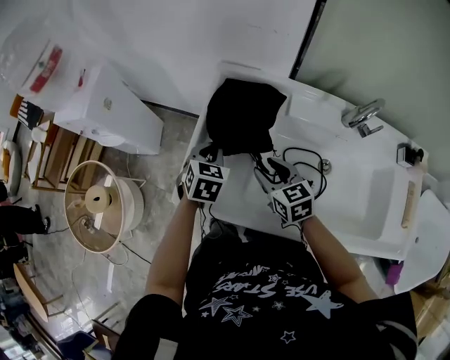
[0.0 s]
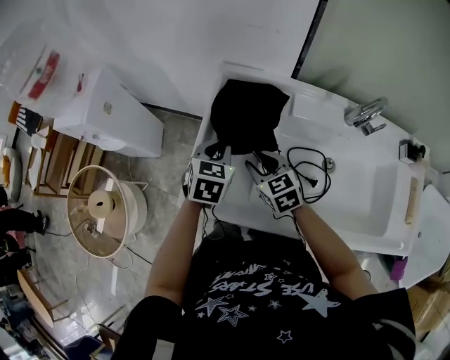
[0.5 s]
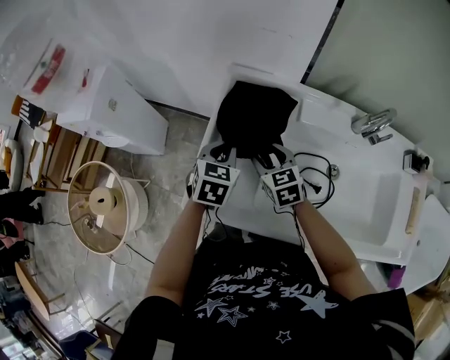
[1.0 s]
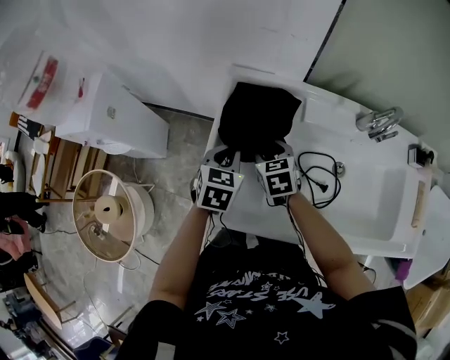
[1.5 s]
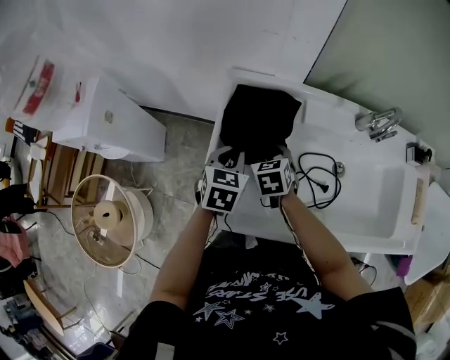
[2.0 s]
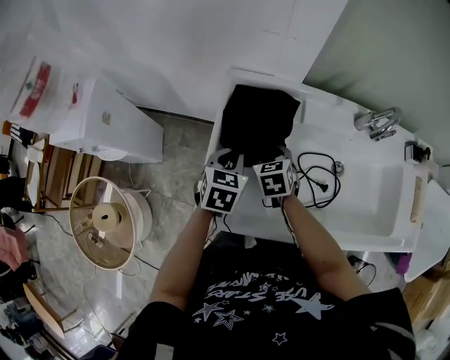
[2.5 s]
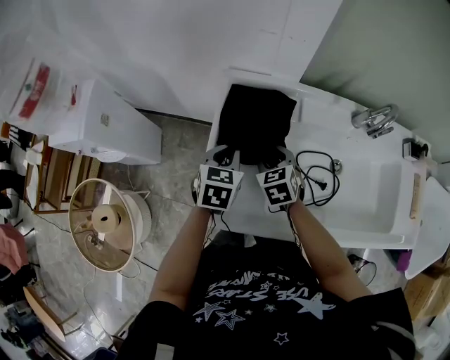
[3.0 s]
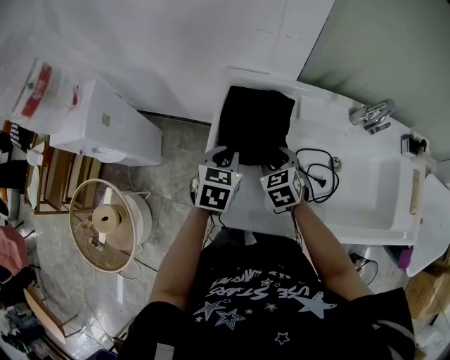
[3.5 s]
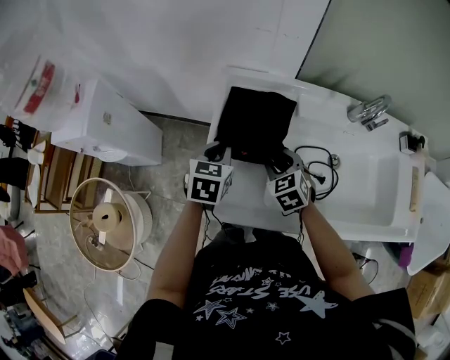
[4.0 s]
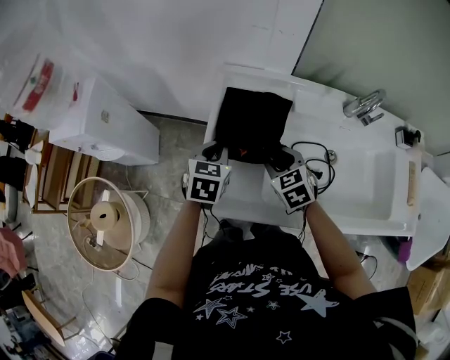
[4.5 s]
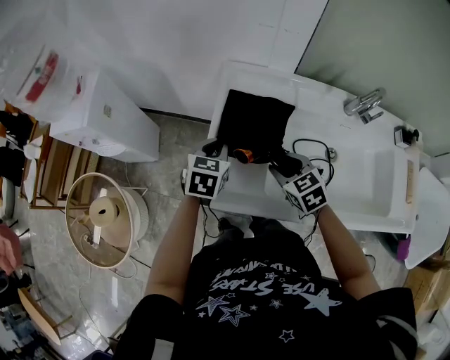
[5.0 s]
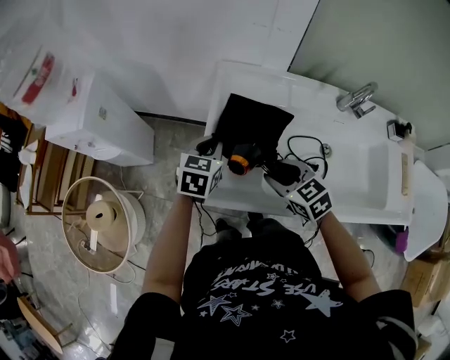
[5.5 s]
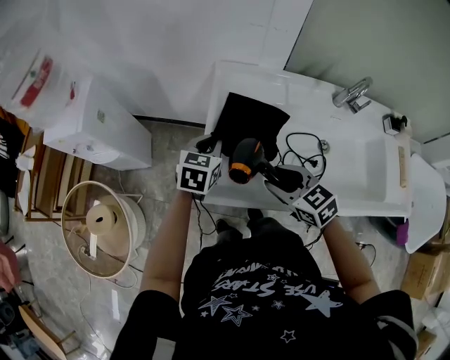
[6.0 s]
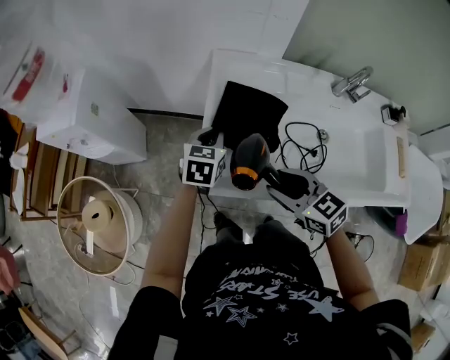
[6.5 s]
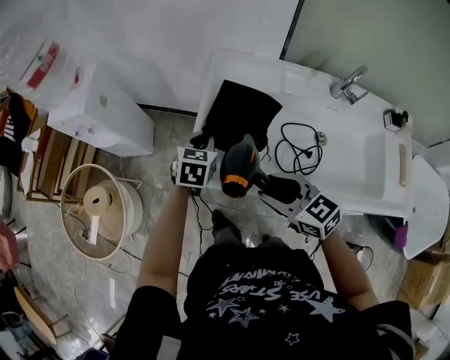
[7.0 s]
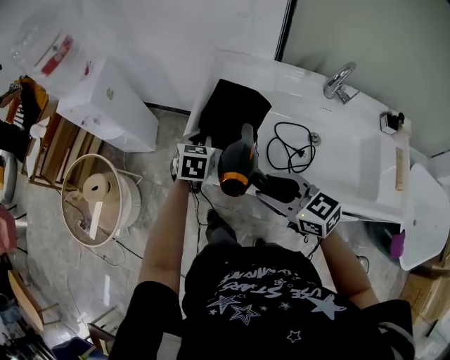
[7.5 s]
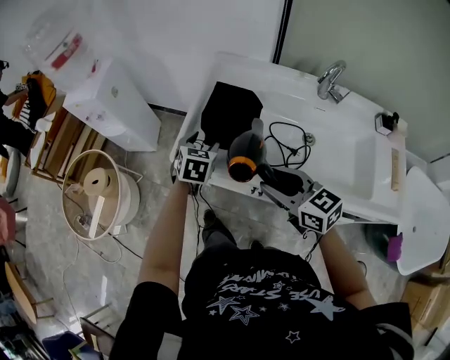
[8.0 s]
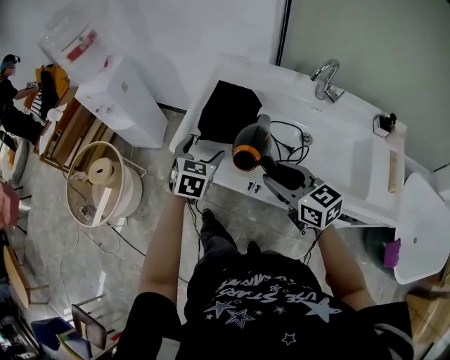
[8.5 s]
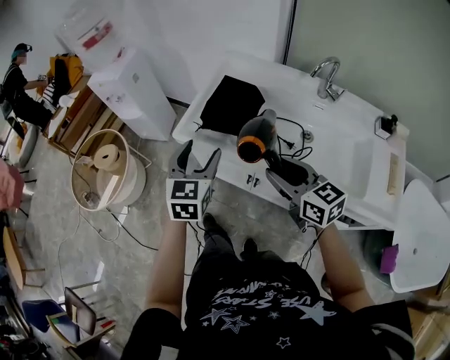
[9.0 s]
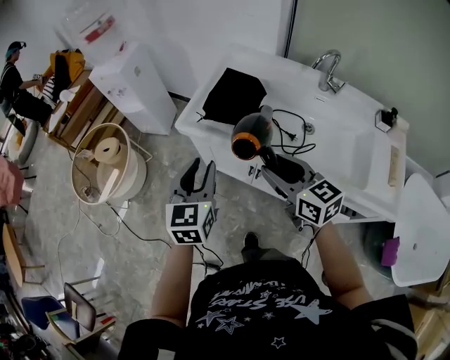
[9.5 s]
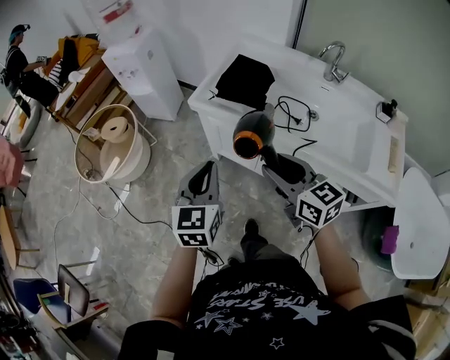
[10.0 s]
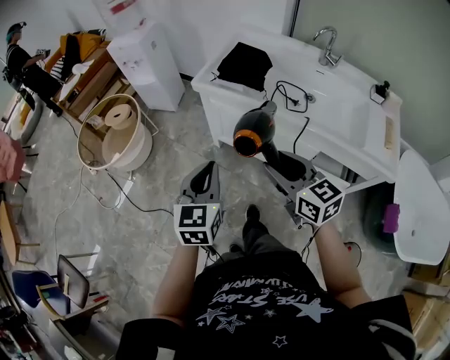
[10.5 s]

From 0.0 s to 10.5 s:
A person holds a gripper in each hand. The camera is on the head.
From 0.0 s to 2.0 s: The right gripper goes approximately 10 cm forward, and swivels about 30 degrees.
From 2.0 s to 4.0 s: The right gripper is displaced backward by approximately 5 cm.
From 4.0 s to 6.5 s: The right gripper heads backward and upward, covering about 20 cm, and turns by about 30 degrees.
From 6.5 s to 8.5 s: The right gripper heads backward and to the right, covering approximately 15 cm; the left gripper heads backward, covering roughly 20 cm, and opens.
From 8.5 s to 10.5 s: The left gripper is displaced backward by roughly 35 cm, changes its angle by some 30 degrees, and closes. Meanwhile the right gripper is displaced backward by about 25 cm.

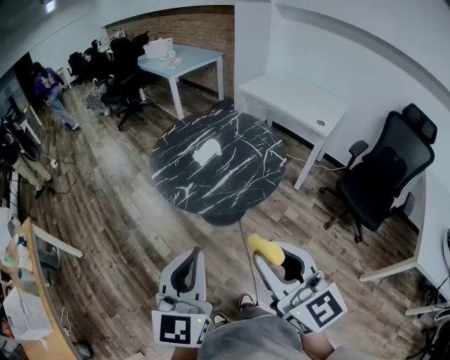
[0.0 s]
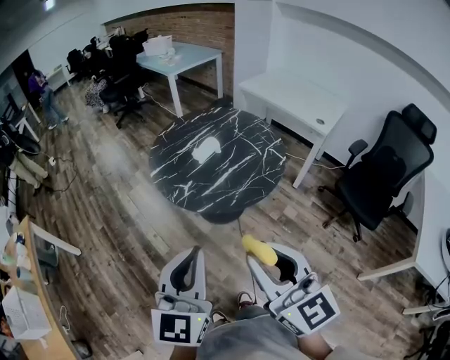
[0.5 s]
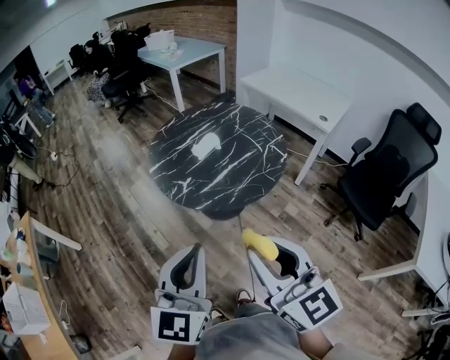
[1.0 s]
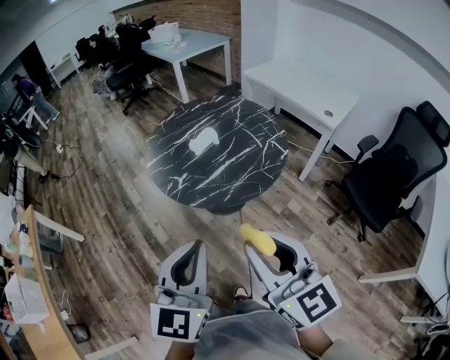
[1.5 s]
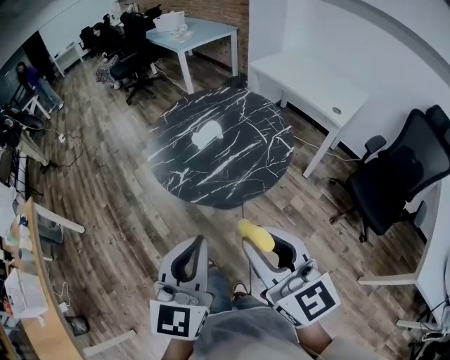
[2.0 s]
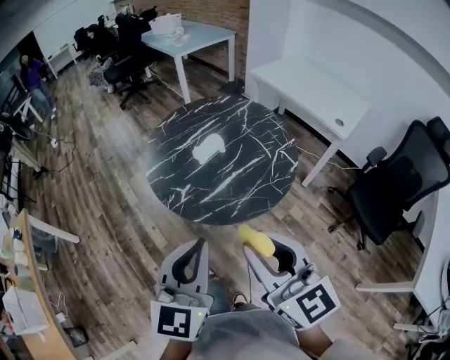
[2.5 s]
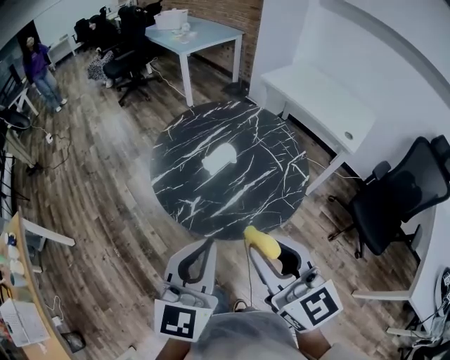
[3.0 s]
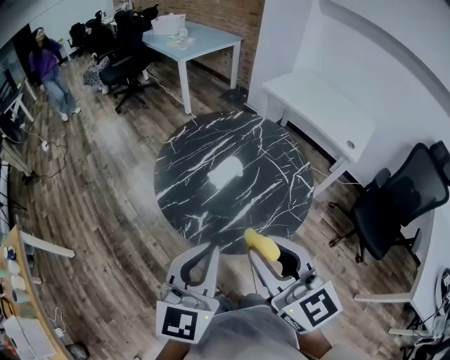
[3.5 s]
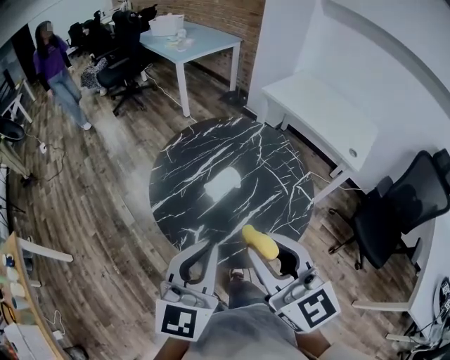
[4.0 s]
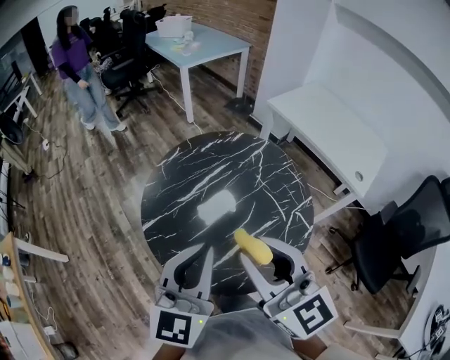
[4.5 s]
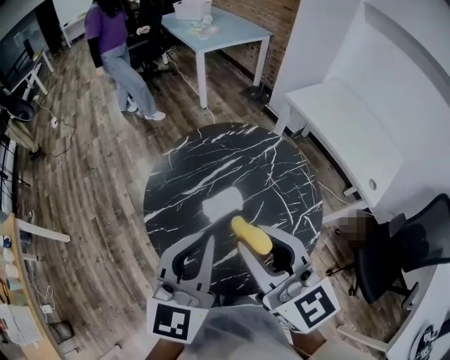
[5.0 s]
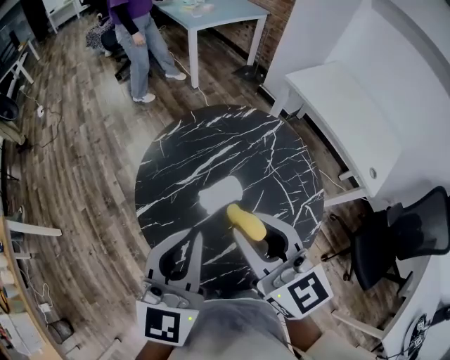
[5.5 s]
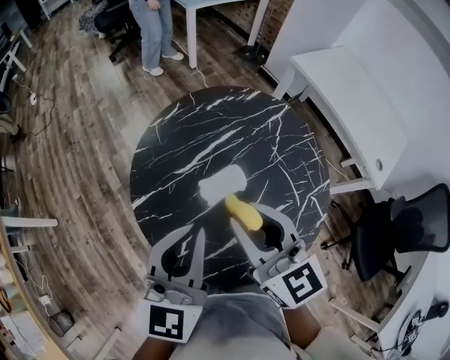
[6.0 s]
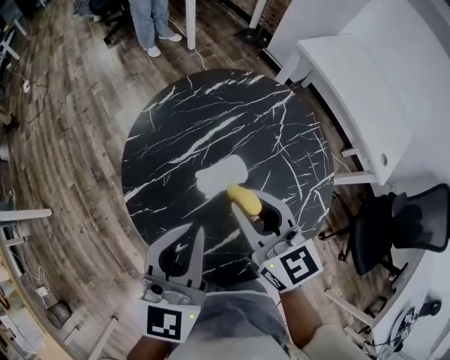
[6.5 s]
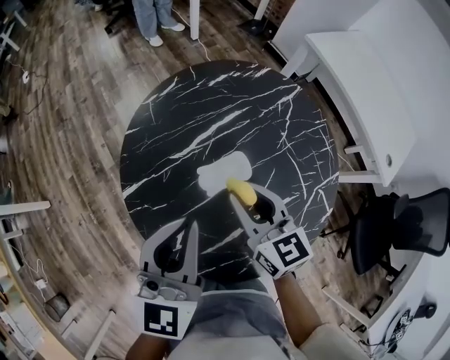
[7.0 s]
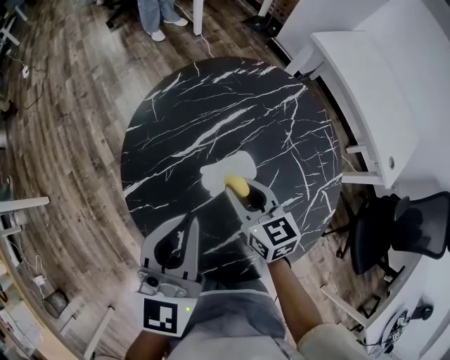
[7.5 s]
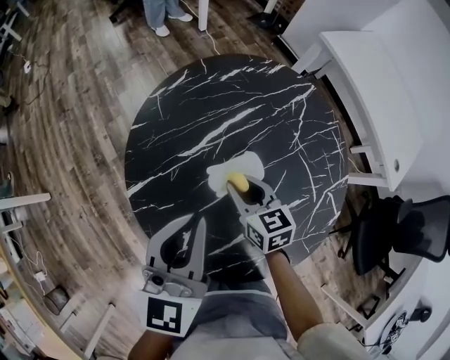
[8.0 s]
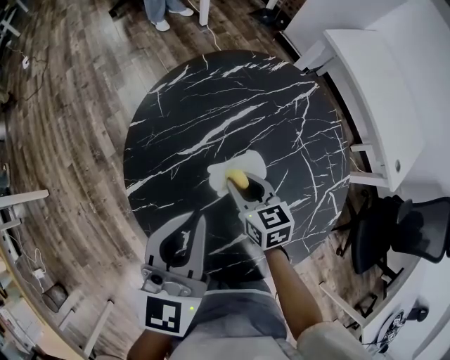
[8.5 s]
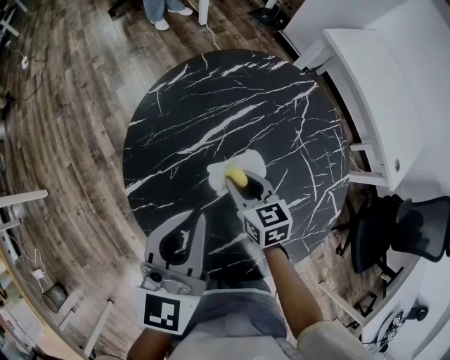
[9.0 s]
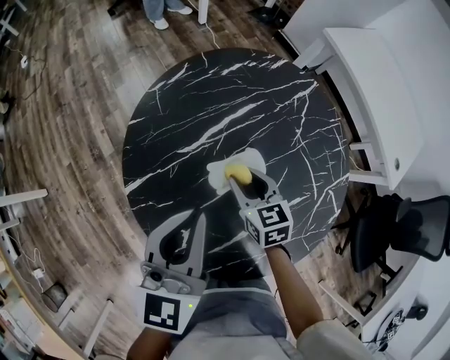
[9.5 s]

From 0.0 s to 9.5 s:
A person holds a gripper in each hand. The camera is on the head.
From 0.0 s to 2.0 s: The left gripper is displaced to the right by roughly 10 cm. Meanwhile the right gripper moves forward, approximately 5 cm.
From 2.0 s to 4.0 s: The grippers both shift forward by roughly 25 cm.
From 4.0 s to 5.5 s: The two grippers go roughly 20 cm forward.
From 5.5 s to 7.5 s: The left gripper heads downward and forward, covering approximately 10 cm. Meanwhile the right gripper travels downward by some 25 cm, and swivels roughly 20 degrees.
From 7.5 s to 9.5 s: The right gripper moves downward, approximately 5 cm.

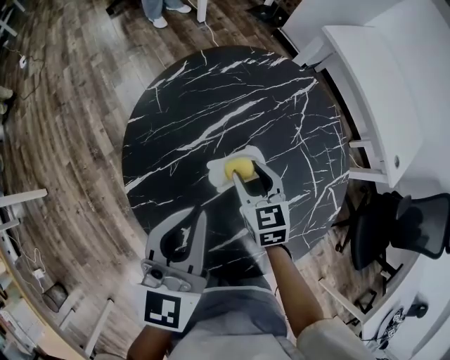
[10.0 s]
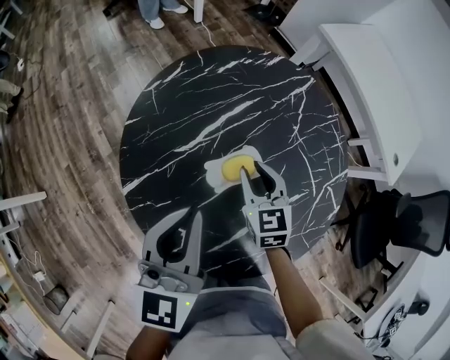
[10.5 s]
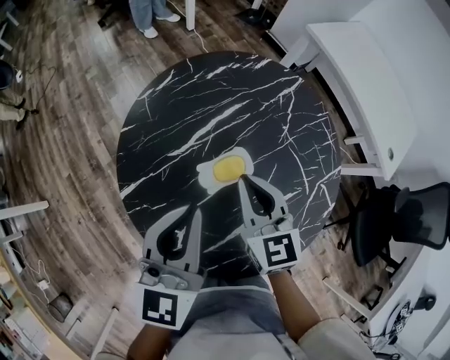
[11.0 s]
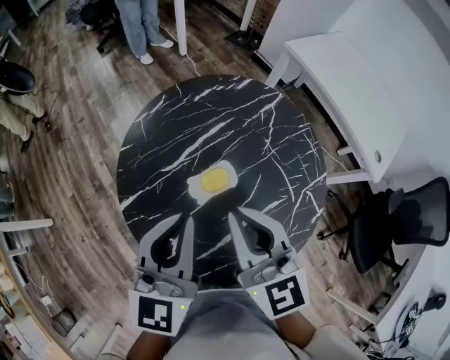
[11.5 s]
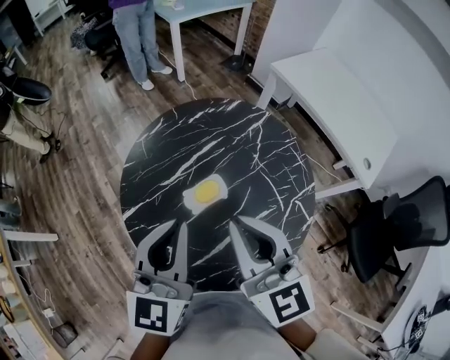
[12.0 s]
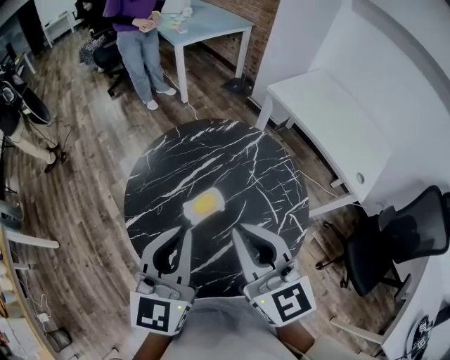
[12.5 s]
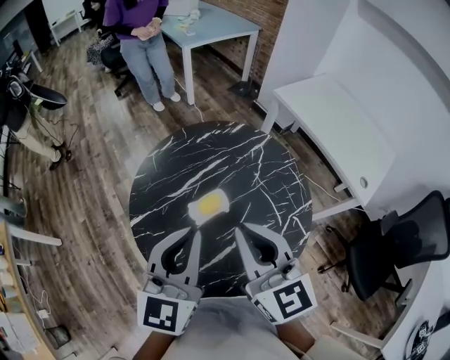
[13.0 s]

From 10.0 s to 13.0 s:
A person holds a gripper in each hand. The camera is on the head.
From 10.0 s to 11.5 s: The left gripper shifts roughly 5 cm upward; the right gripper moves upward, some 25 cm, changes its angle by about 30 degrees, and closes up.
From 11.5 s to 13.0 s: The two grippers go about 10 cm upward and backward.

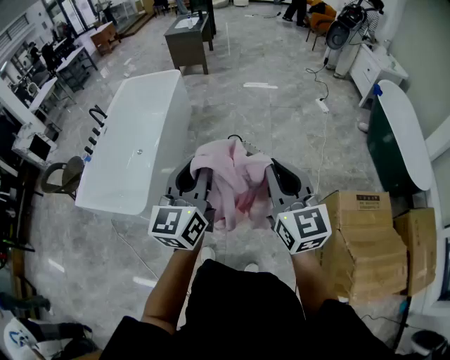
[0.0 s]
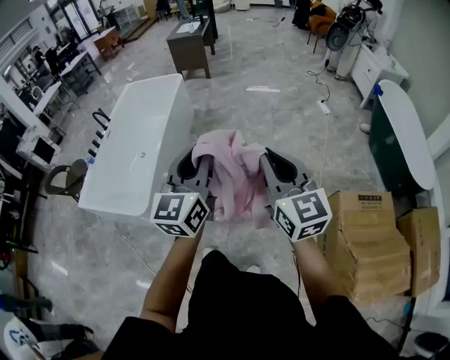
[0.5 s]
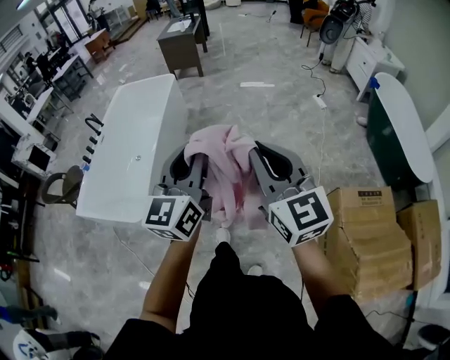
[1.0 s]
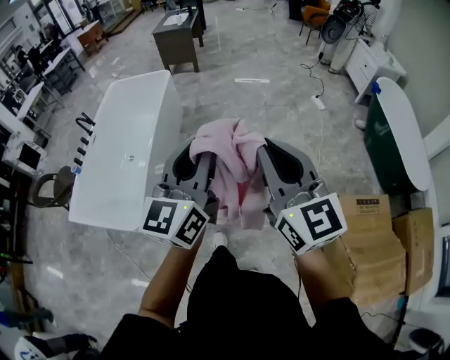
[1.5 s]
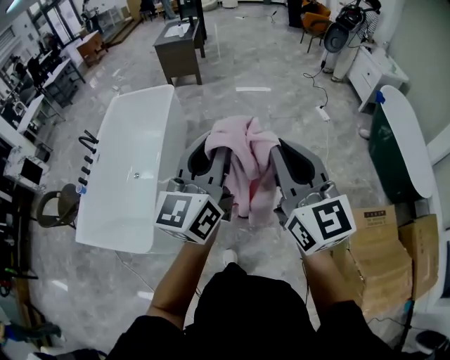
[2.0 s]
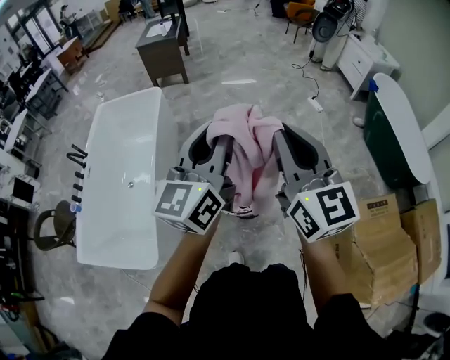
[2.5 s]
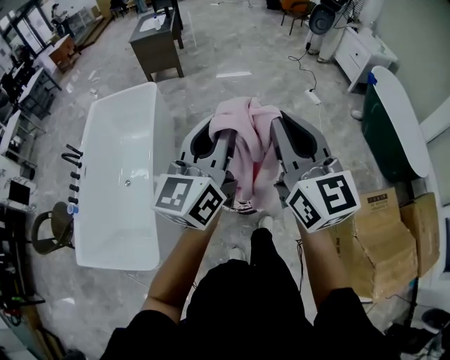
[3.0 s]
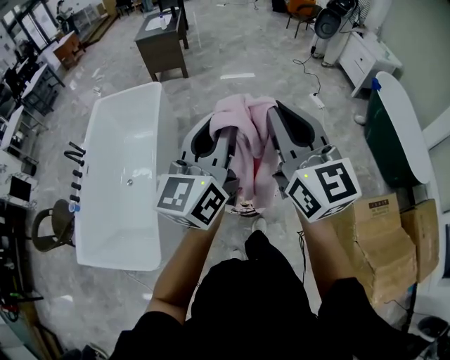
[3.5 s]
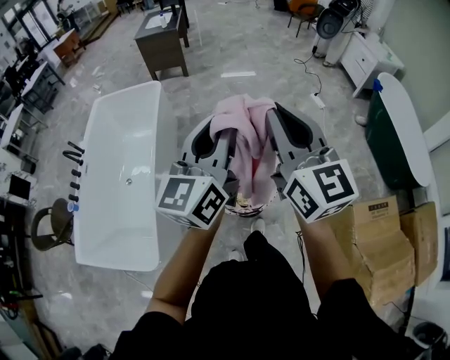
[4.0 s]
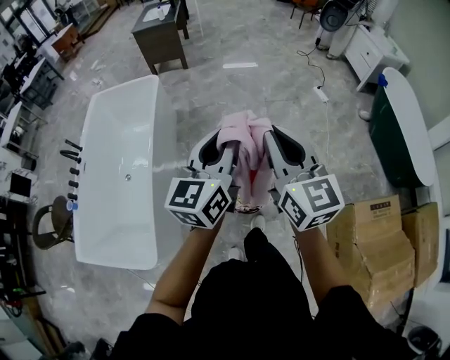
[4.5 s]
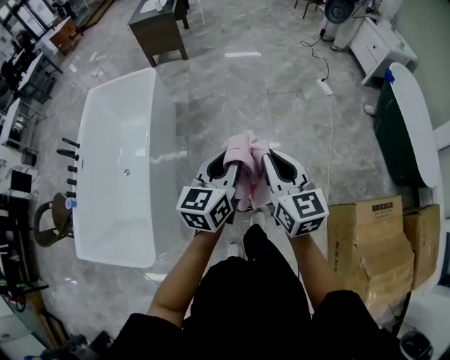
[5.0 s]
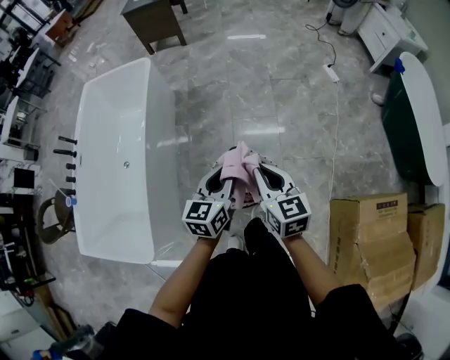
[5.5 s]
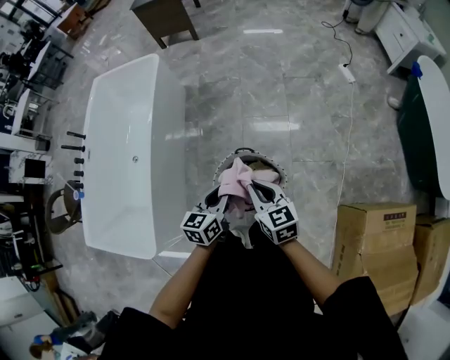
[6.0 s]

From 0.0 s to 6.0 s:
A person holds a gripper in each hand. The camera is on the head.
From 0.0 s to 2.0 s: The right gripper is displaced forward and upward by about 25 cm; the left gripper shifts about 25 cm forward.
From 2.0 s to 4.0 s: The left gripper shifts some 15 cm forward; the right gripper shifts roughly 20 cm forward and to the left.
From 4.0 s to 6.0 s: Both grippers move downward, some 40 cm. The right gripper tilts its fingers roughly 30 degrees downward; the left gripper tips its fingers downward by some 40 degrees.
